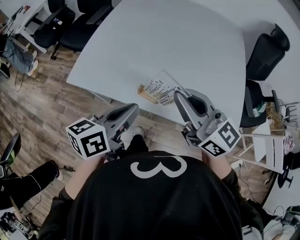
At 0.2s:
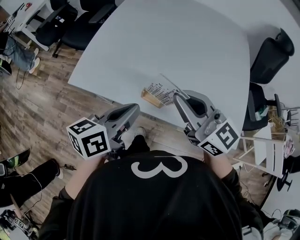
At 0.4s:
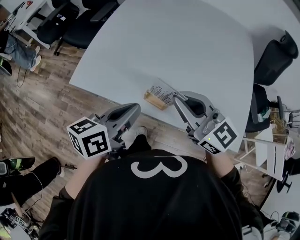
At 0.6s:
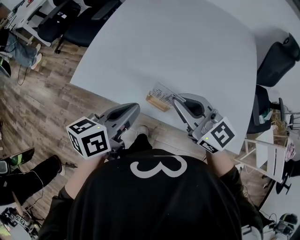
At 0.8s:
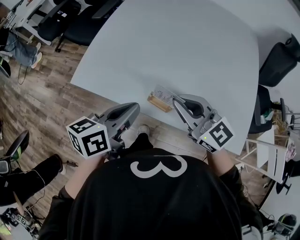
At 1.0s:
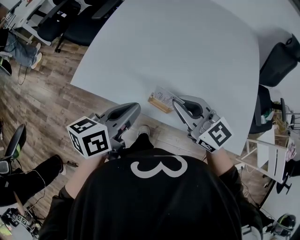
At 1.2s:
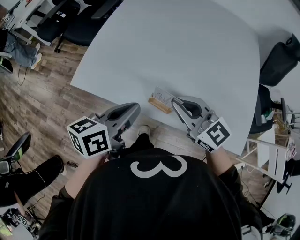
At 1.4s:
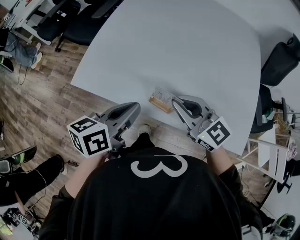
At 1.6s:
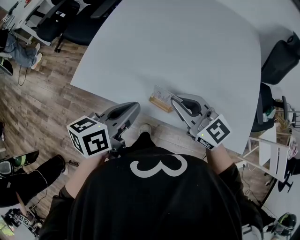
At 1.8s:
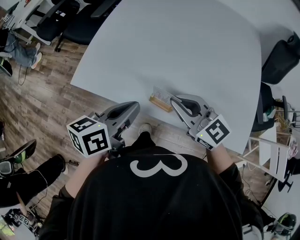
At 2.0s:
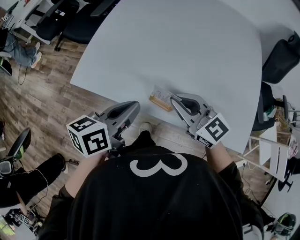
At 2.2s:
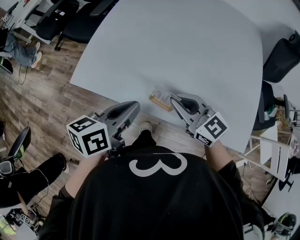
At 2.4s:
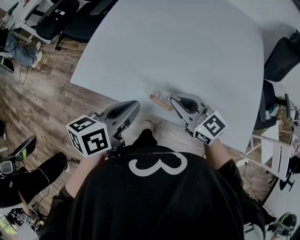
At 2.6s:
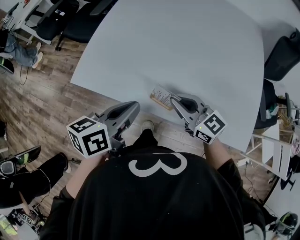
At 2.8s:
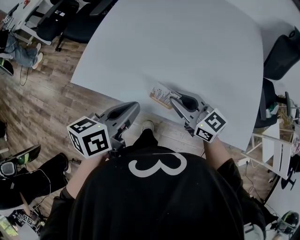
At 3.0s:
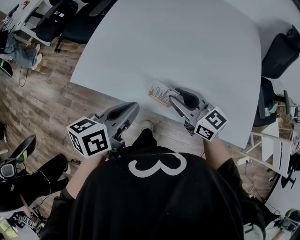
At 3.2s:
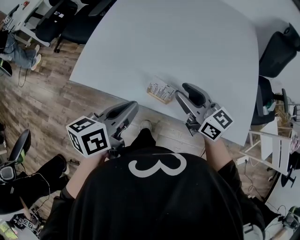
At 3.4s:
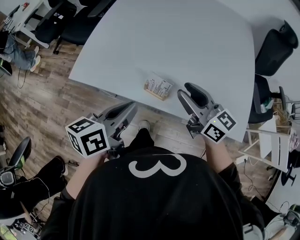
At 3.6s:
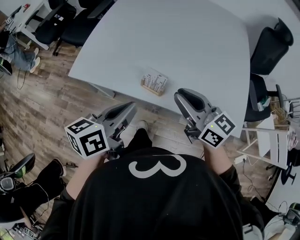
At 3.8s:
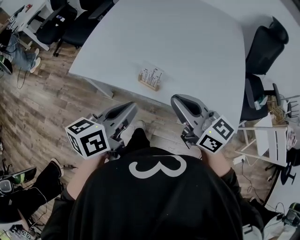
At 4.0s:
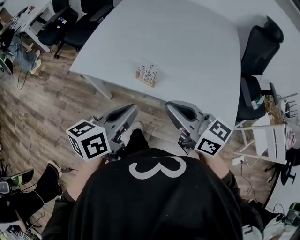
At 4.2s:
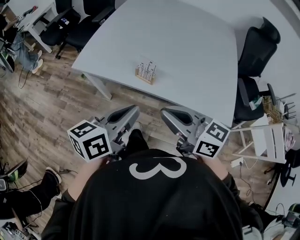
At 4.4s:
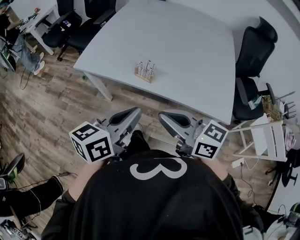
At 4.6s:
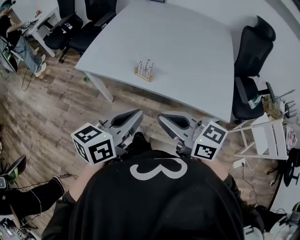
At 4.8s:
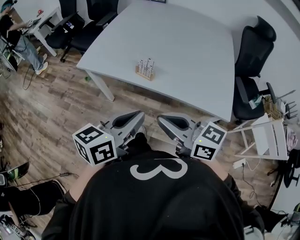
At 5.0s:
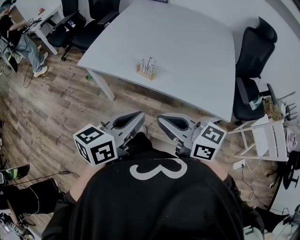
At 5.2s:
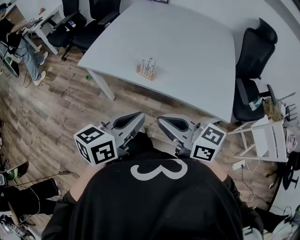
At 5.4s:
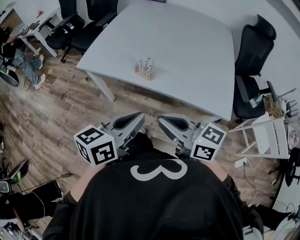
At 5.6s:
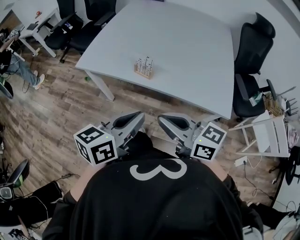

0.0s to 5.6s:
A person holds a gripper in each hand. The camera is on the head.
0.0s to 1.4s: The right gripper travels downward and forward by some 10 cm. Meanwhile the left gripper shifts roughly 5 cm forward.
1.4s to 2.8s: The right gripper shifts approximately 5 cm downward.
2.8s to 4.2s: The right gripper heads backward and upward, covering about 25 cm, and opens, then closes again. Meanwhile the left gripper goes roughly 15 cm backward.
4.2s to 5.6s: The grippers both shift backward by some 5 cm.

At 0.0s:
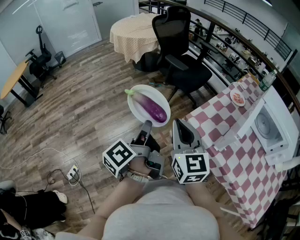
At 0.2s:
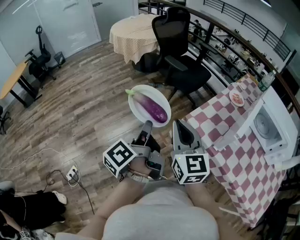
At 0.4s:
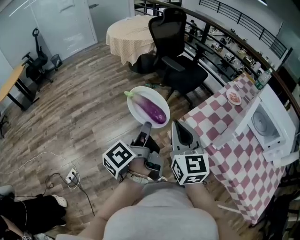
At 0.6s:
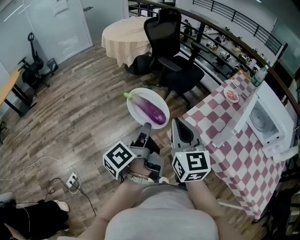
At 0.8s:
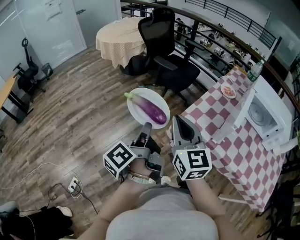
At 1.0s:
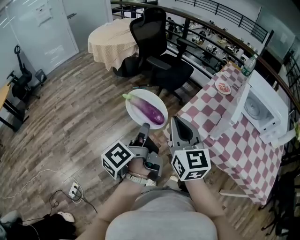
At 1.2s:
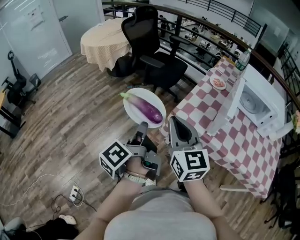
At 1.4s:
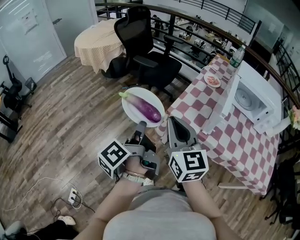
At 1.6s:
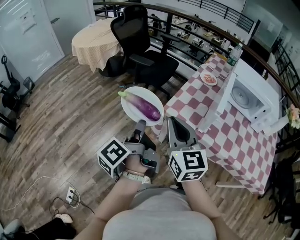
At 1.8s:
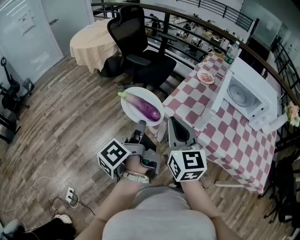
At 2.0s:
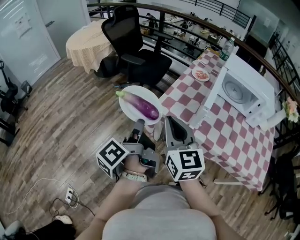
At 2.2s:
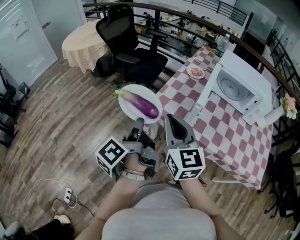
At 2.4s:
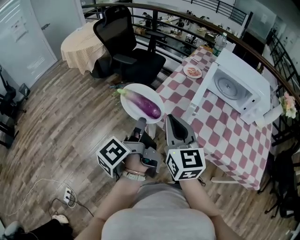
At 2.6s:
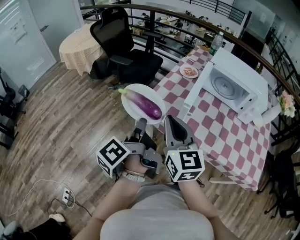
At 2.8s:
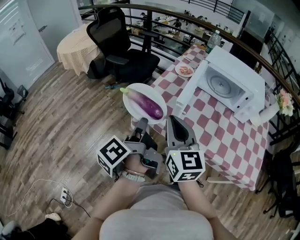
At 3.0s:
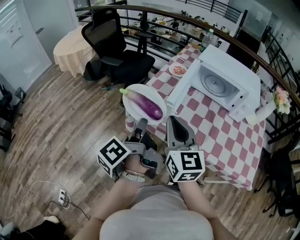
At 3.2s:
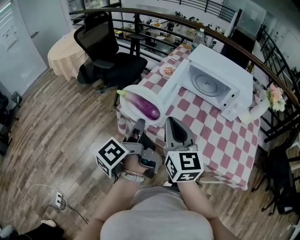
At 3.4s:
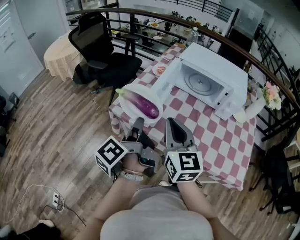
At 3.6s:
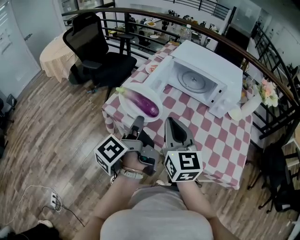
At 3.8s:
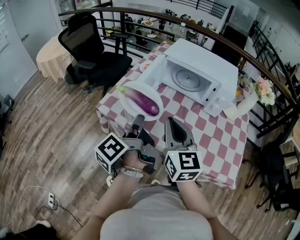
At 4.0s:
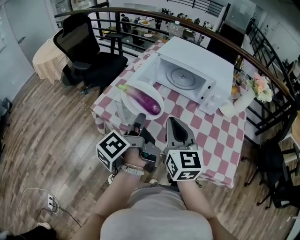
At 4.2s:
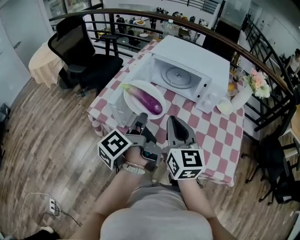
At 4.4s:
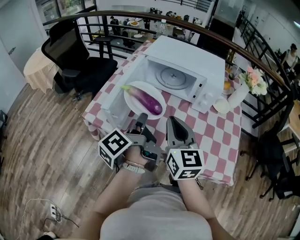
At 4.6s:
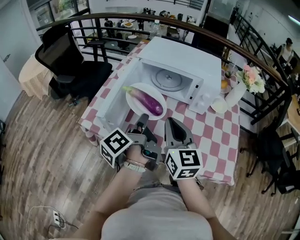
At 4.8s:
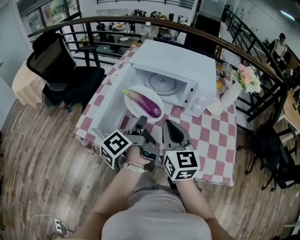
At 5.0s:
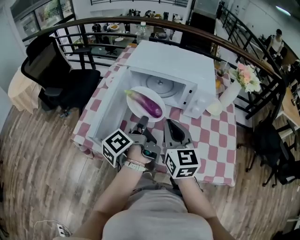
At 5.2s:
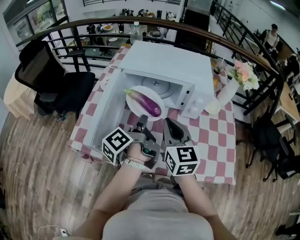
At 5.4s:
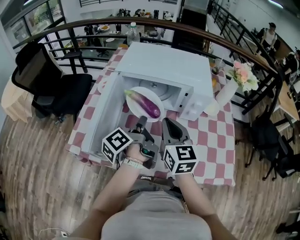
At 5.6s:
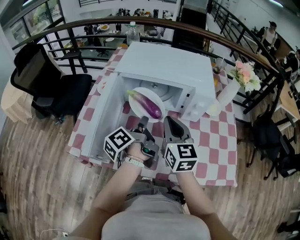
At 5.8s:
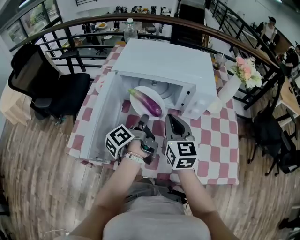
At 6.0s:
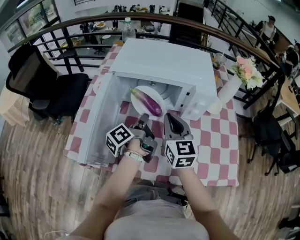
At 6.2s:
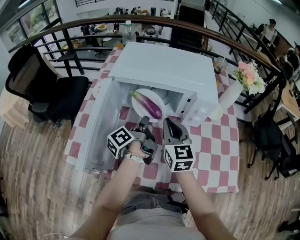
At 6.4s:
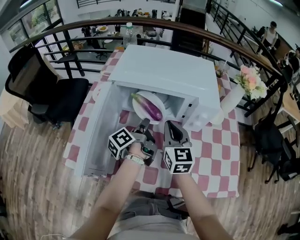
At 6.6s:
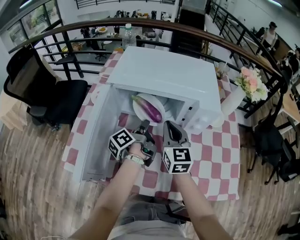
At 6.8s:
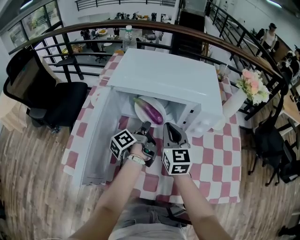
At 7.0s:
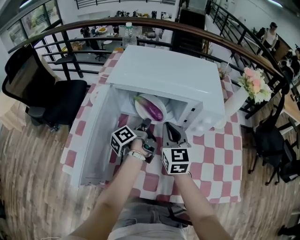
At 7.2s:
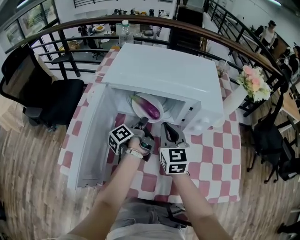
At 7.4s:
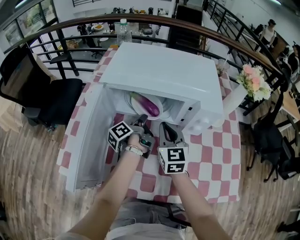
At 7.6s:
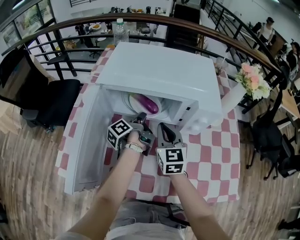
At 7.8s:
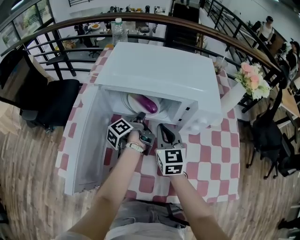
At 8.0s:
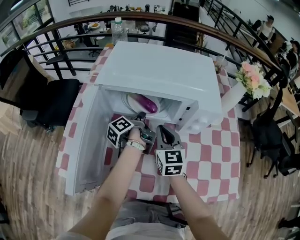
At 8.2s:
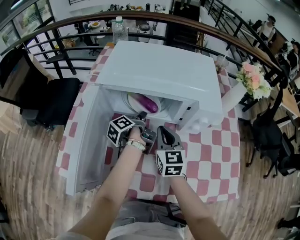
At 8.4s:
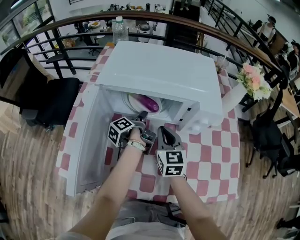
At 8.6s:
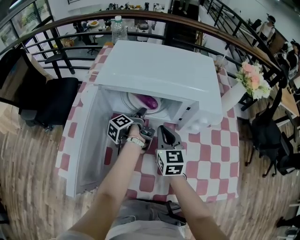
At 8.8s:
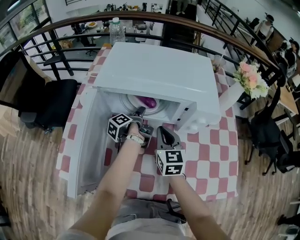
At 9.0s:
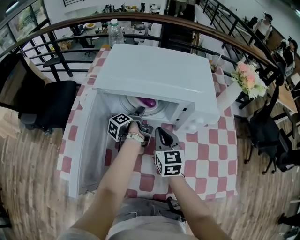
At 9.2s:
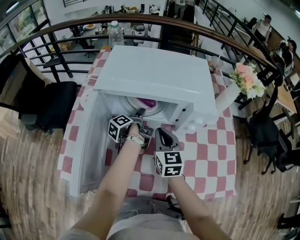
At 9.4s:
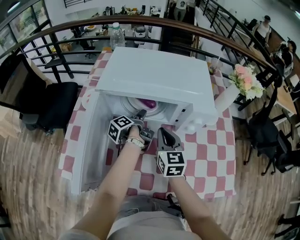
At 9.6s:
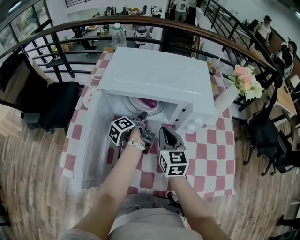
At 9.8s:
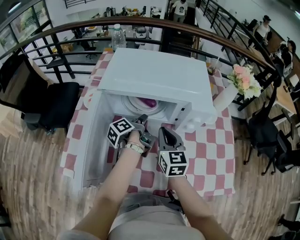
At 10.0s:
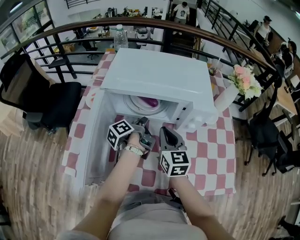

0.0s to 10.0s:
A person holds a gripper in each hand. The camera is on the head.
1.4s to 2.8s: The right gripper moves approximately 20 cm.
2.8s to 4.2s: The right gripper ends up about 25 cm from where it was.
4.2s to 5.8s: The right gripper changes place by roughly 20 cm.
5.8s to 7.2s: The right gripper moves about 10 cm.
8.6s to 10.0s: The right gripper shifts approximately 5 cm upward.

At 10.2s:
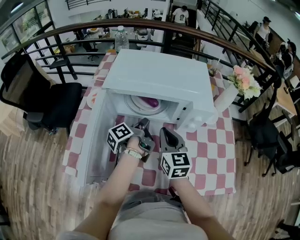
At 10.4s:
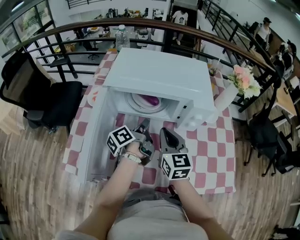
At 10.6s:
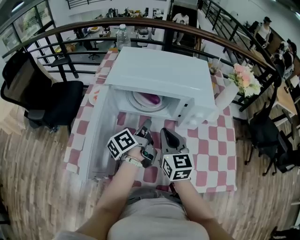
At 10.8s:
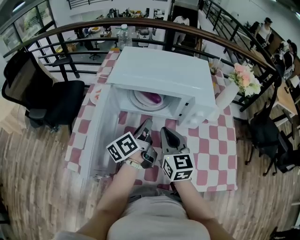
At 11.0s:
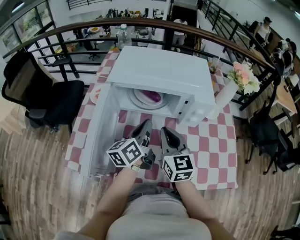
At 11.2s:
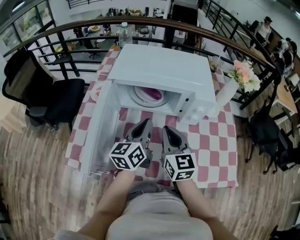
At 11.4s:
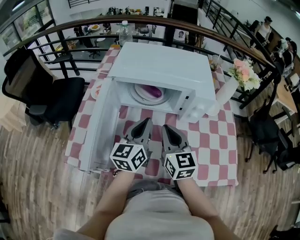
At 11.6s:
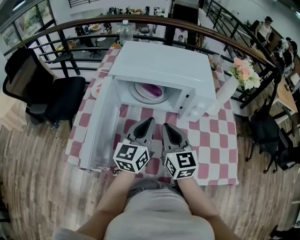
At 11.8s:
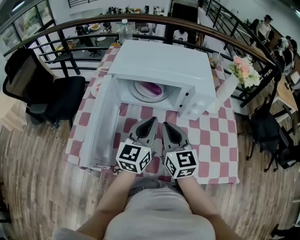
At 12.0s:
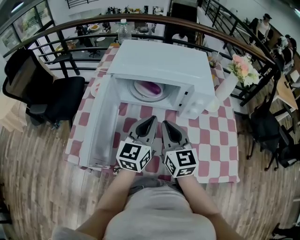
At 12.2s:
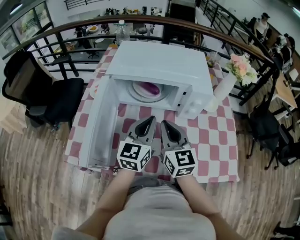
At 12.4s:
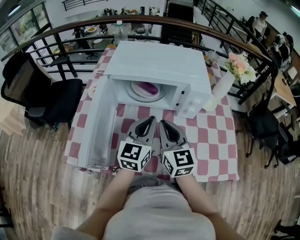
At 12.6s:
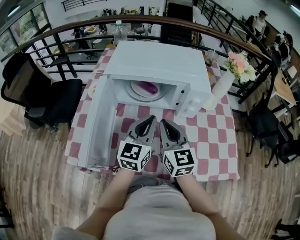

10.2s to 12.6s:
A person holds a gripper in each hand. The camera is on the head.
10.2s to 11.4s: The right gripper moves roughly 5 cm.

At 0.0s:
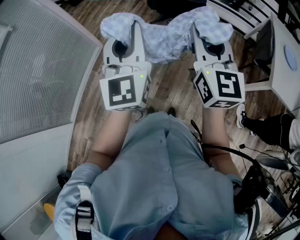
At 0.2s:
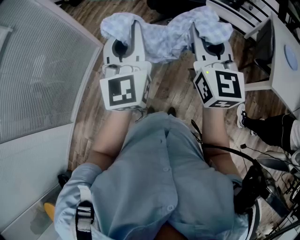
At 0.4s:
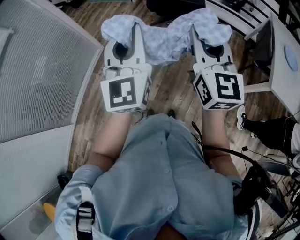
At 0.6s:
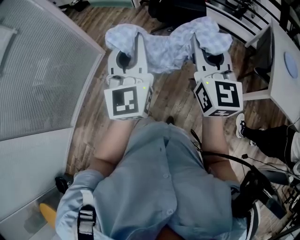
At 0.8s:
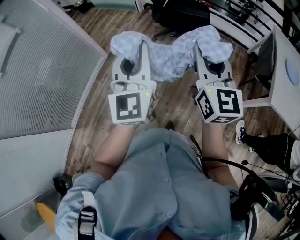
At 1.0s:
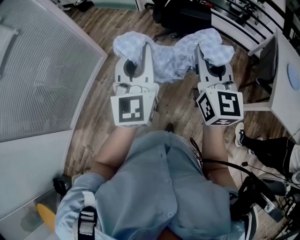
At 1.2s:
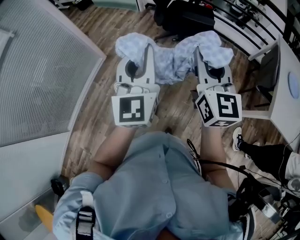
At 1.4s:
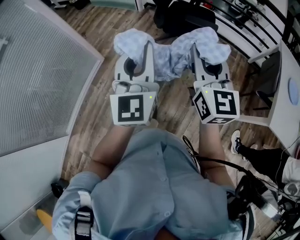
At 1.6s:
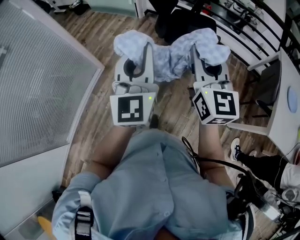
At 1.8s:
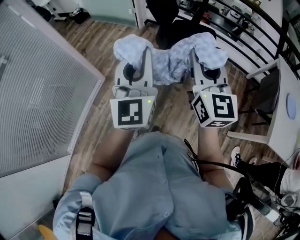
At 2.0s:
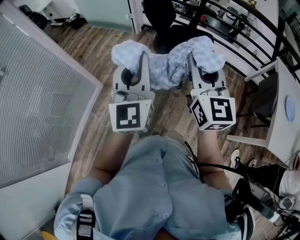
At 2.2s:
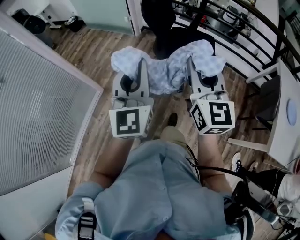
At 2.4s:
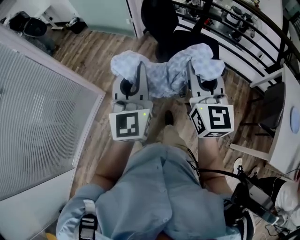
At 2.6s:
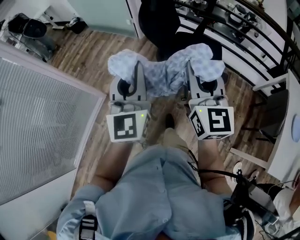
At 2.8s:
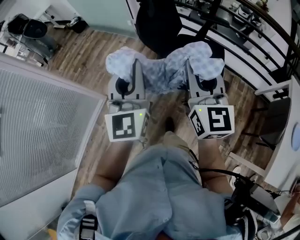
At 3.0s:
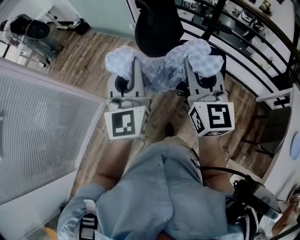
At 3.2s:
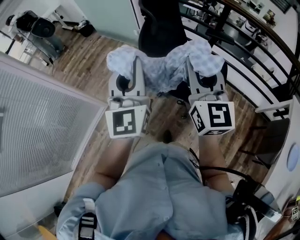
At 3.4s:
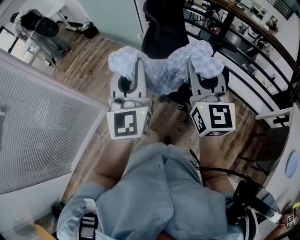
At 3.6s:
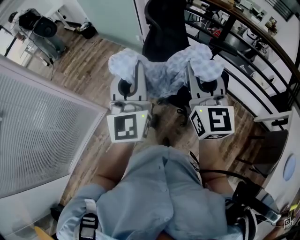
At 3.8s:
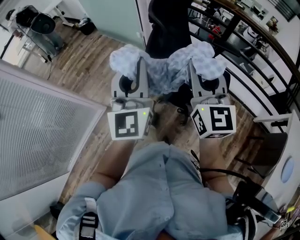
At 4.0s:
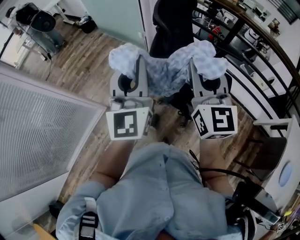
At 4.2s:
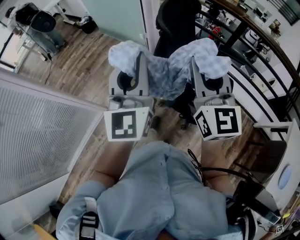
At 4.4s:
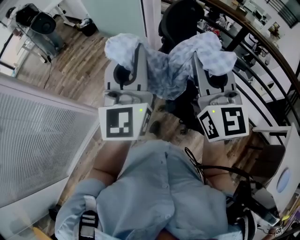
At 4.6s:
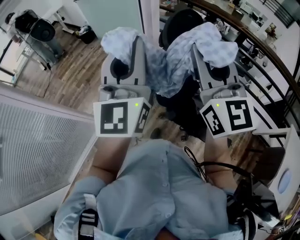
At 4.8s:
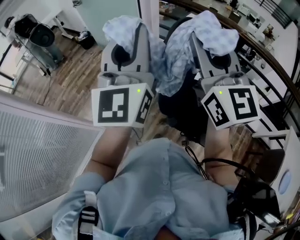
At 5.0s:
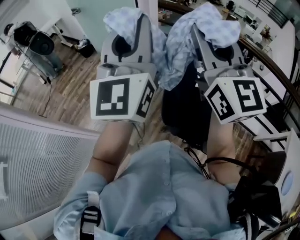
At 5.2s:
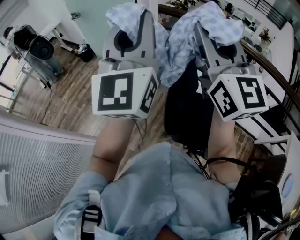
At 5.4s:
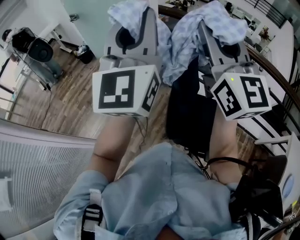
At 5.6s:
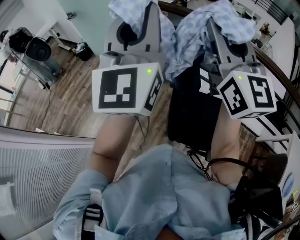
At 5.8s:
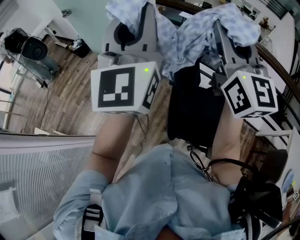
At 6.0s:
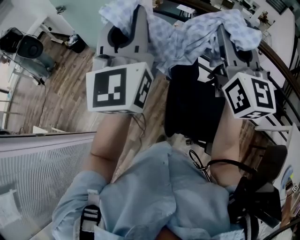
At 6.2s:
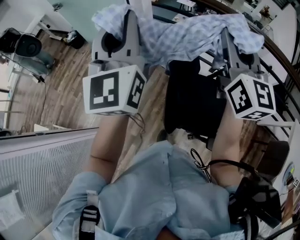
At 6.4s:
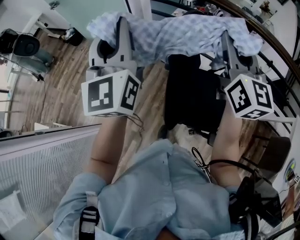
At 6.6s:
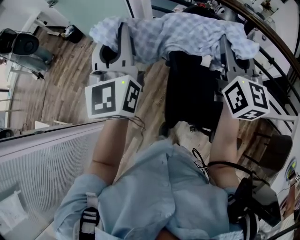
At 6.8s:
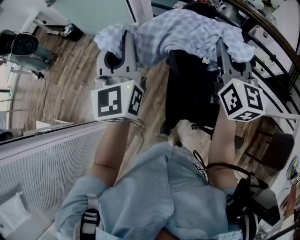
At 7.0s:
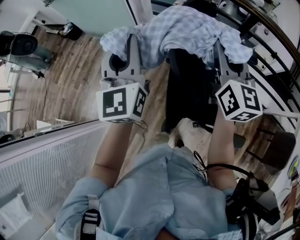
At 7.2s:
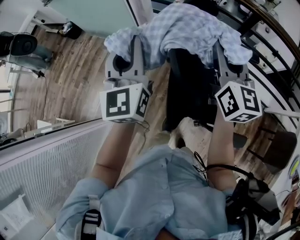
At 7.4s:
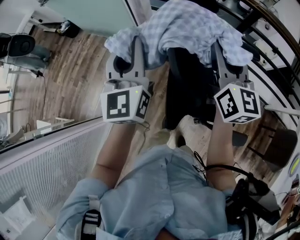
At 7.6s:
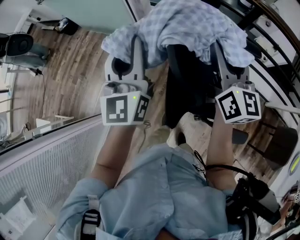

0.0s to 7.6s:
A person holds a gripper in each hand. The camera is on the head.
0.0s to 1.6s: Both grippers travel together forward, some 20 cm.
1.6s to 3.0s: Both grippers move forward, roughly 35 cm.
3.0s to 4.6s: Both grippers travel together forward and upward, about 25 cm.
4.6s to 6.0s: The right gripper heads forward and to the right, covering approximately 20 cm. Meanwhile the left gripper goes approximately 20 cm forward.
6.0s to 7.6s: Both grippers travel together downward, roughly 20 cm. The right gripper opens up.
